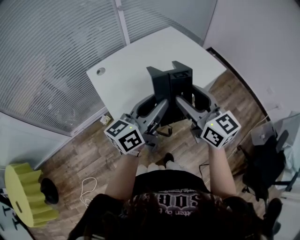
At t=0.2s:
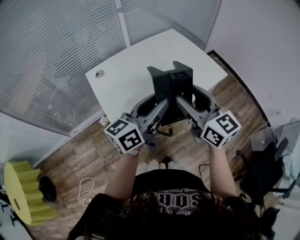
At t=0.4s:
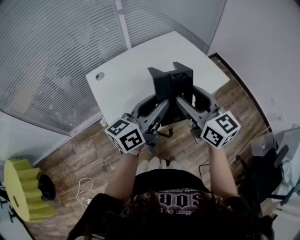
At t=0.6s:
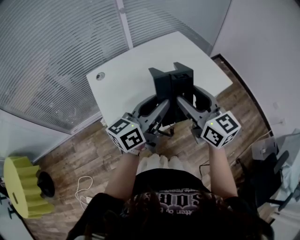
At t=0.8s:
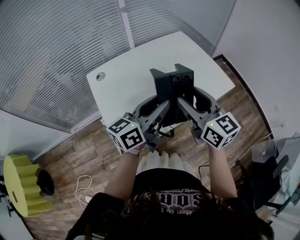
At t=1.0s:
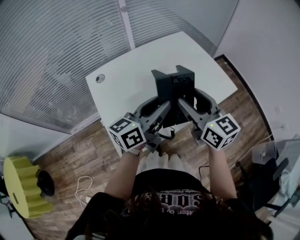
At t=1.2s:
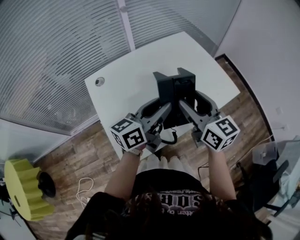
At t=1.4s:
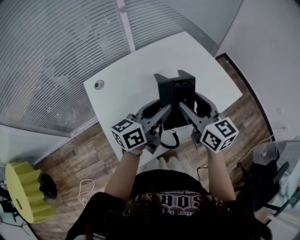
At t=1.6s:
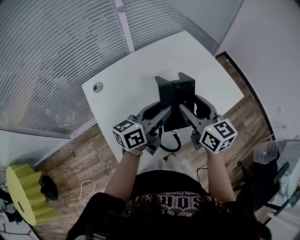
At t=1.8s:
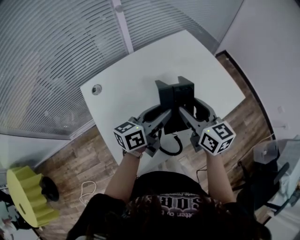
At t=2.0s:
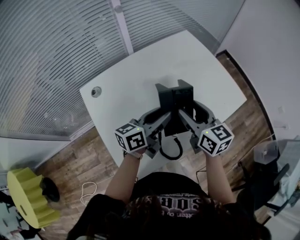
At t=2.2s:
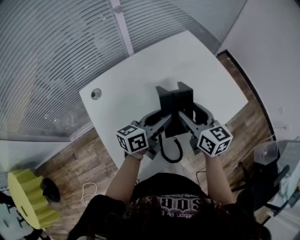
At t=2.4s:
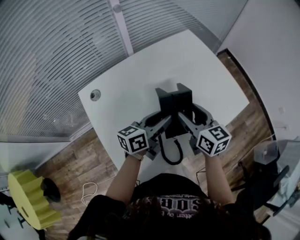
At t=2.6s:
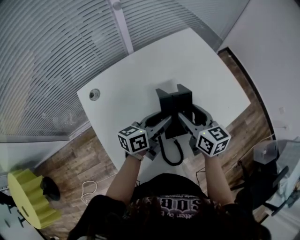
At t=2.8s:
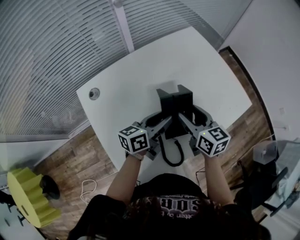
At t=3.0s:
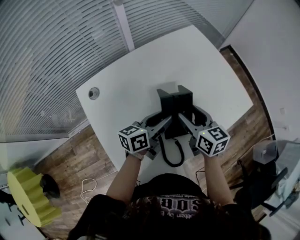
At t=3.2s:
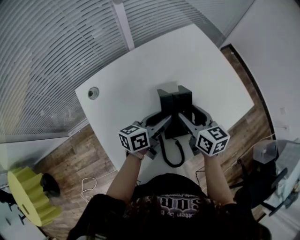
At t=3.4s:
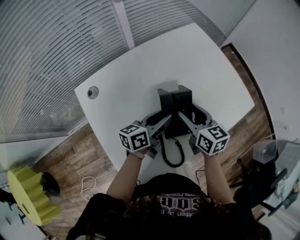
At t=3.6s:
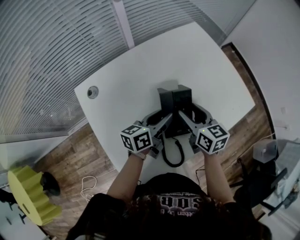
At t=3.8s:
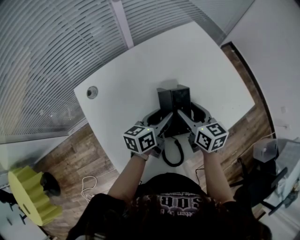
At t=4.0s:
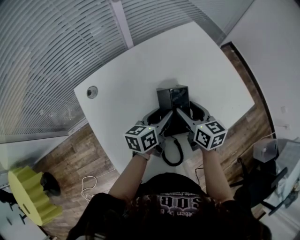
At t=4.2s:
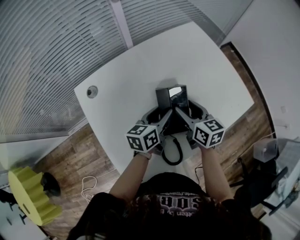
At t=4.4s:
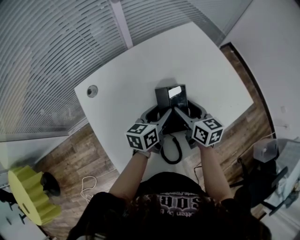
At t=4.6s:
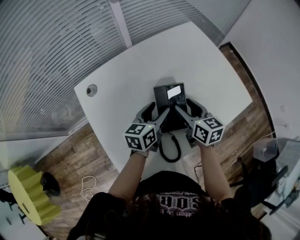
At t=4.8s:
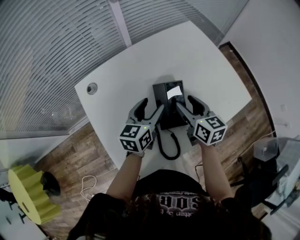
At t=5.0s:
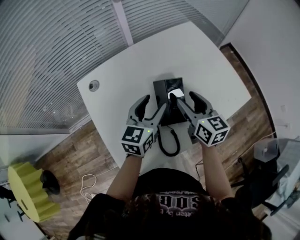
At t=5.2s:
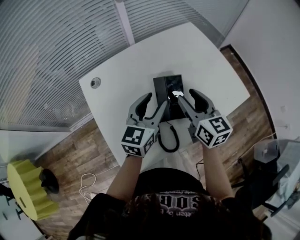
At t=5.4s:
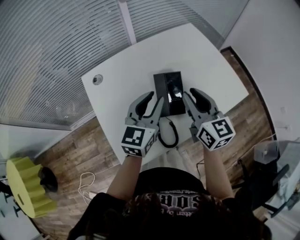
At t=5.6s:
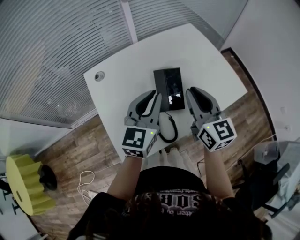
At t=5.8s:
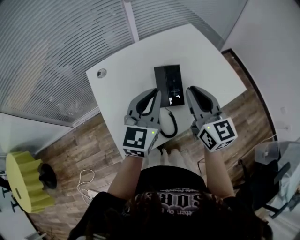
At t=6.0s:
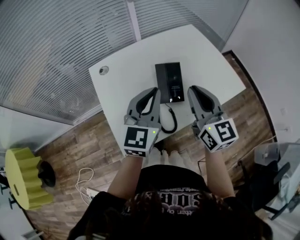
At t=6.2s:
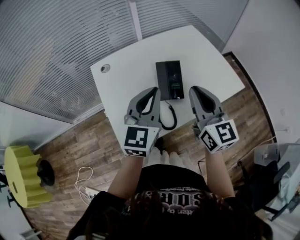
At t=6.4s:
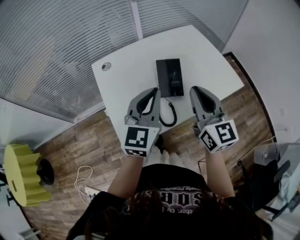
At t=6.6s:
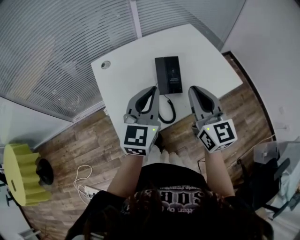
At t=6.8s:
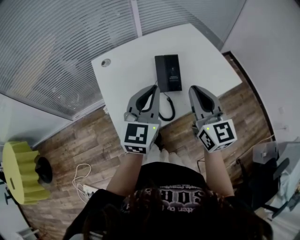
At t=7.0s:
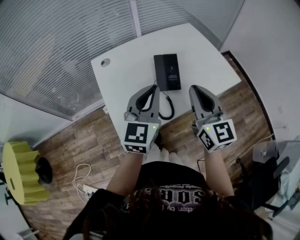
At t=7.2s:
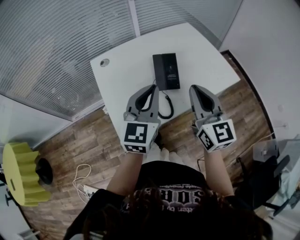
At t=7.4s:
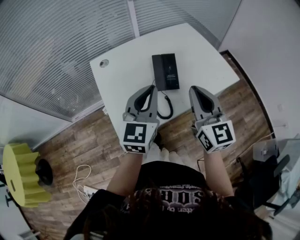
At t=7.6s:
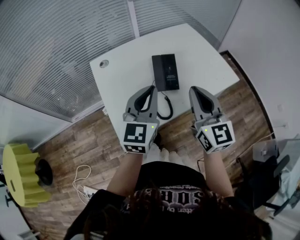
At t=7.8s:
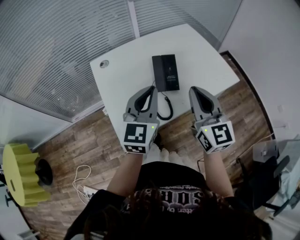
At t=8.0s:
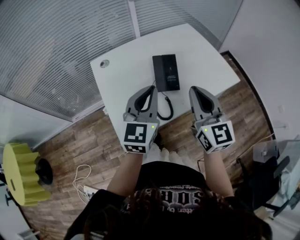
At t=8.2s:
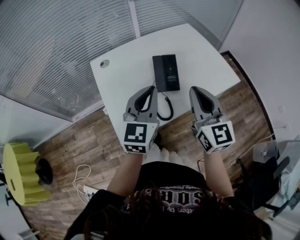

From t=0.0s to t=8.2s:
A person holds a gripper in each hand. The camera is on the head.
From t=0.0s to t=1.6s: The grippers both shift forward and downward by approximately 20 cm.
From t=1.6s to t=3.2s: Both grippers travel together downward and forward, approximately 15 cm.
From t=3.2s to t=5.0s: The left gripper shifts some 5 cm upward, changes its angle by some 40 degrees, and opens its fingers.
From t=5.0s to t=6.6s: Both grippers travel together backward and upward, approximately 20 cm. The right gripper turns by some 20 degrees, and closes up. The left gripper changes its angle by some 20 degrees, and closes.
From t=6.6s to t=8.2s: The grippers move only a little.

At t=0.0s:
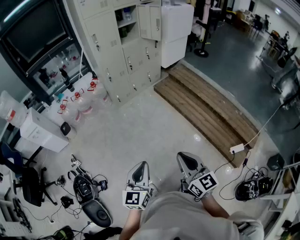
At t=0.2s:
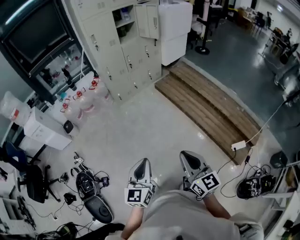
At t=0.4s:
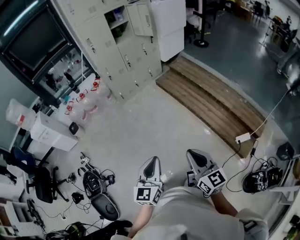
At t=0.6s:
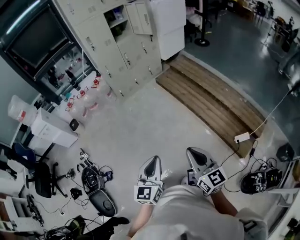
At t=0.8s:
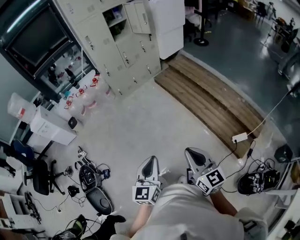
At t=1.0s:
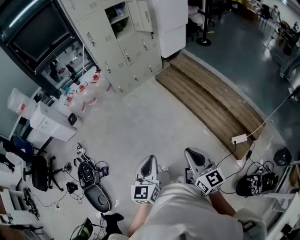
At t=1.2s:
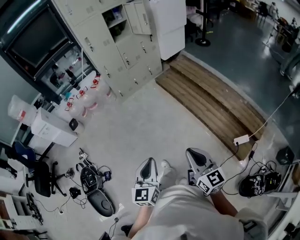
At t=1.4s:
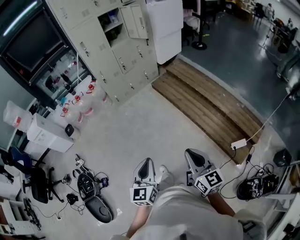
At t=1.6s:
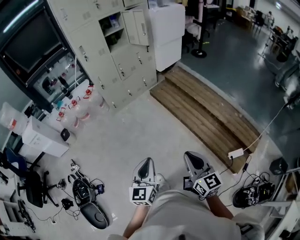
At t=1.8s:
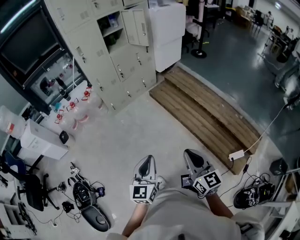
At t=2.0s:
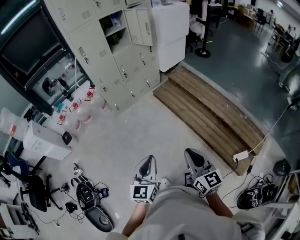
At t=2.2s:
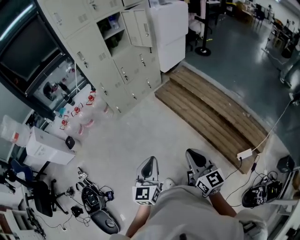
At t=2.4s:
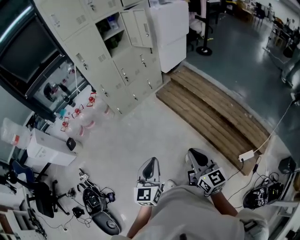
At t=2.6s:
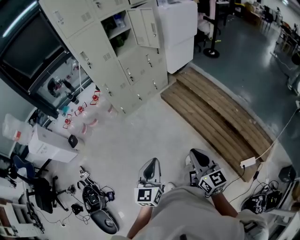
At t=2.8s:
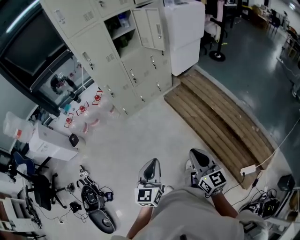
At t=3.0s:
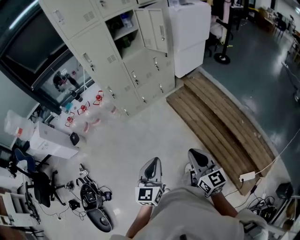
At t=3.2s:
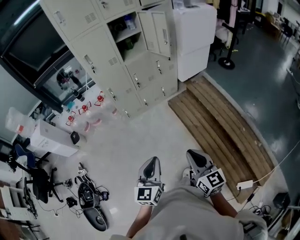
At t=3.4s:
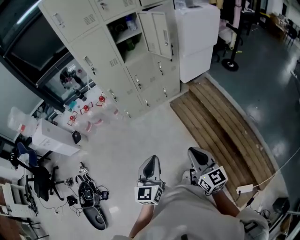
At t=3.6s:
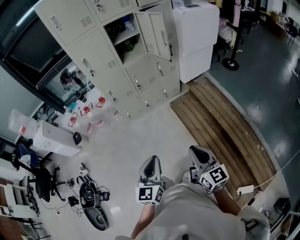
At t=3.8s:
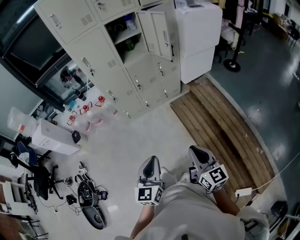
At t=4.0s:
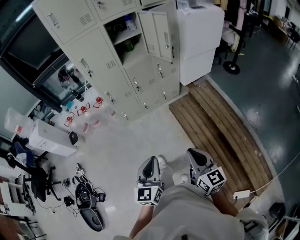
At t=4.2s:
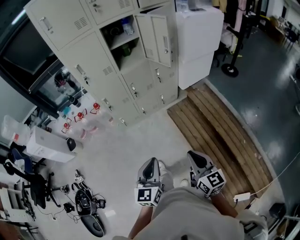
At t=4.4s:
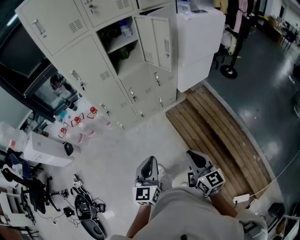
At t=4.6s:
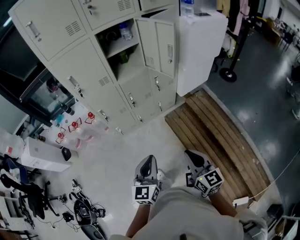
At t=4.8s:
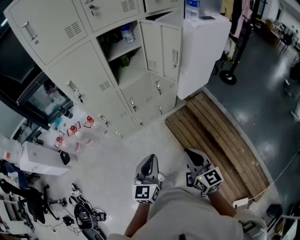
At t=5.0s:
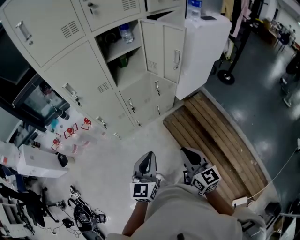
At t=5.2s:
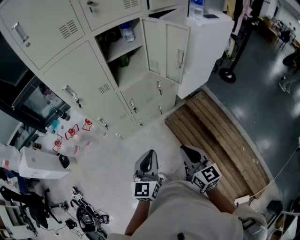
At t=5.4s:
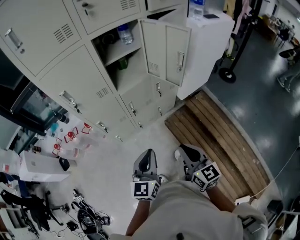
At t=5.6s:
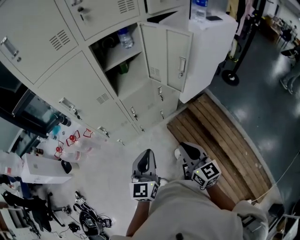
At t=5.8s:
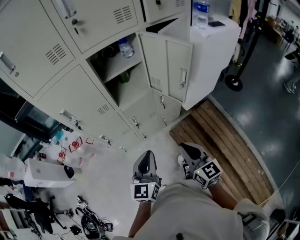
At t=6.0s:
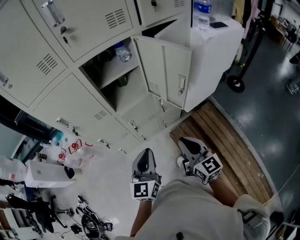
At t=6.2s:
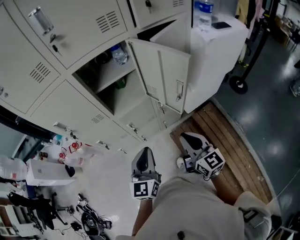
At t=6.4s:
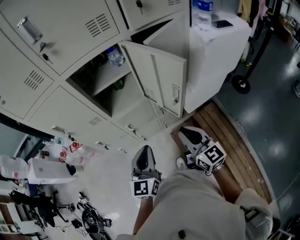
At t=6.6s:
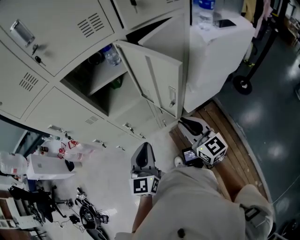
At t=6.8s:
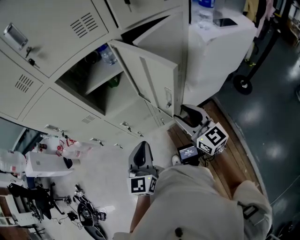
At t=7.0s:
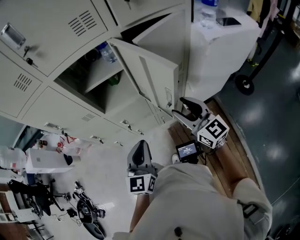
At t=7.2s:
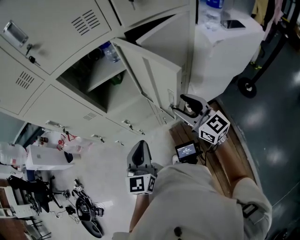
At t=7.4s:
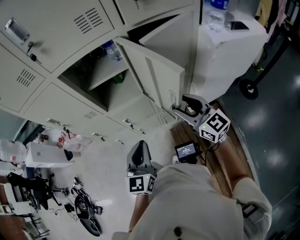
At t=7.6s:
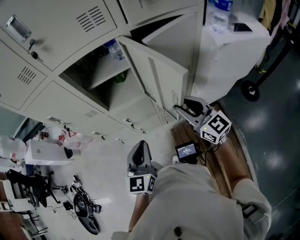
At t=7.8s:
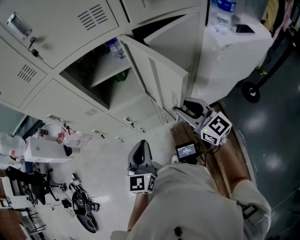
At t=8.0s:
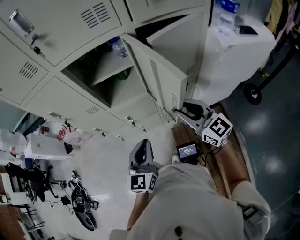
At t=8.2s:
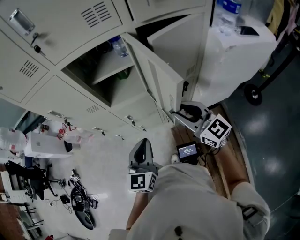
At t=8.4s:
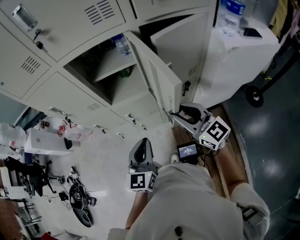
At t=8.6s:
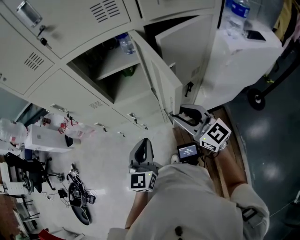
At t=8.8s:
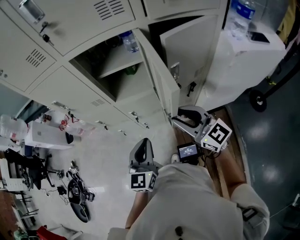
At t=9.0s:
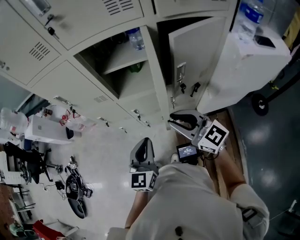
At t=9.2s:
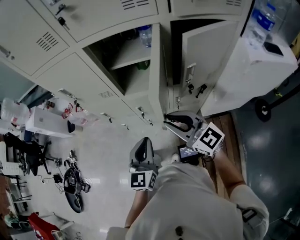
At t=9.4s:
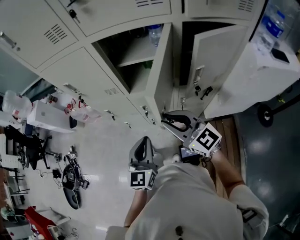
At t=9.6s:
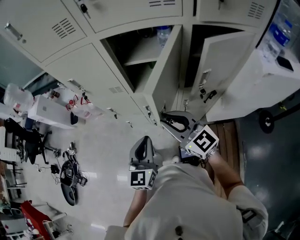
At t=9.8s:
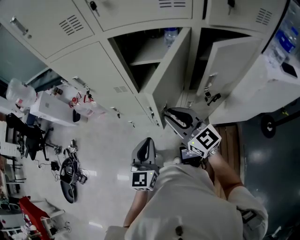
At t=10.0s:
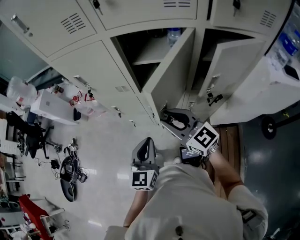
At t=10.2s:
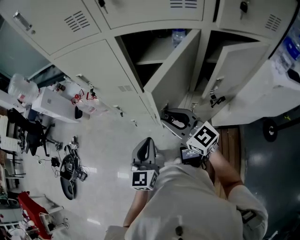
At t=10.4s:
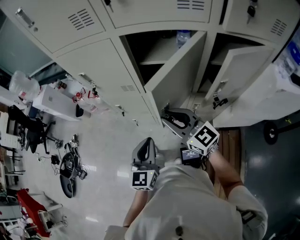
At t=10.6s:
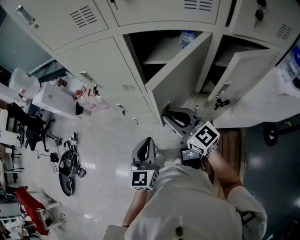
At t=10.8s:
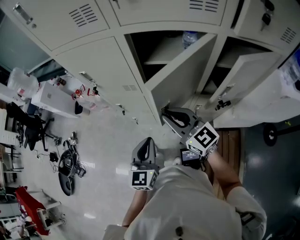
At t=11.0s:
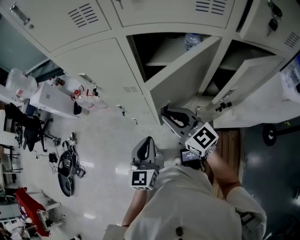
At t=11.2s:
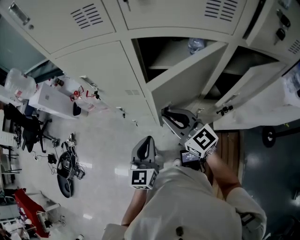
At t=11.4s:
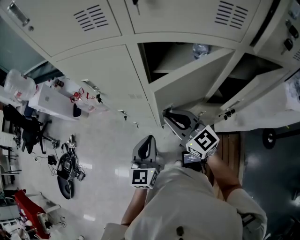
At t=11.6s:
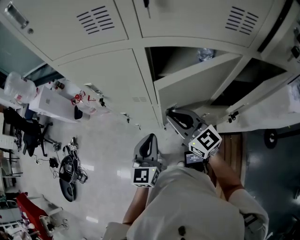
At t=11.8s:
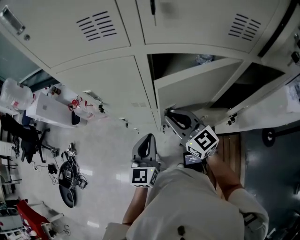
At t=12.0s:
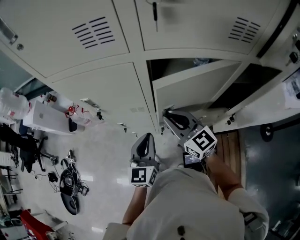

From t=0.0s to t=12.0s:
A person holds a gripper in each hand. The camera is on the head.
From t=0.0s to t=1.6s: Both grippers move to the right, about 20 cm.
From t=1.6s to t=3.0s: Both grippers travel together forward, roughly 25 cm.
From t=3.0s to t=4.4s: The grippers both shift forward by roughly 25 cm.
From t=4.4s to t=6.0s: Both grippers travel together forward, roughly 35 cm.
From t=6.0s to t=7.6s: The left gripper goes roughly 10 cm to the right and forward; the right gripper shifts some 25 cm forward and to the right, rotates approximately 30 degrees, and opens up.
From t=7.6s to t=9.0s: The right gripper travels to the left by some 10 cm, and changes its angle by approximately 20 degrees.
From t=9.0s to t=10.4s: The right gripper goes roughly 15 cm to the left and forward. The left gripper goes approximately 10 cm to the left.
From t=10.4s to t=12.0s: The two grippers go about 15 cm forward.

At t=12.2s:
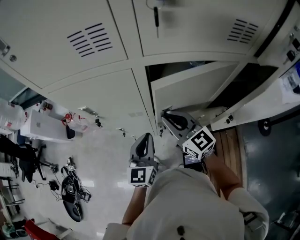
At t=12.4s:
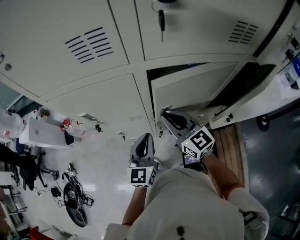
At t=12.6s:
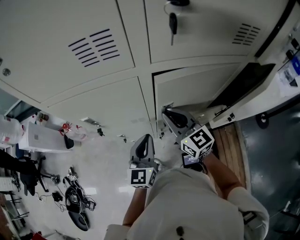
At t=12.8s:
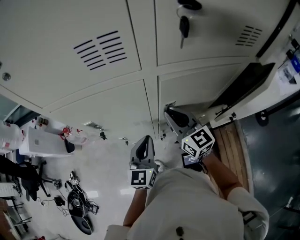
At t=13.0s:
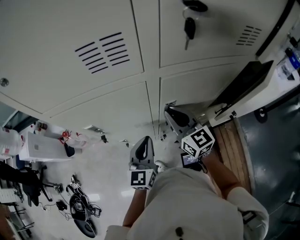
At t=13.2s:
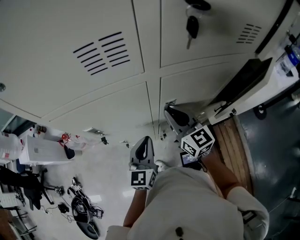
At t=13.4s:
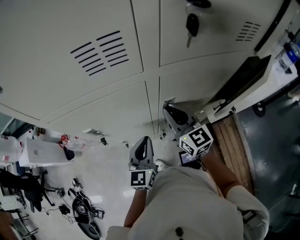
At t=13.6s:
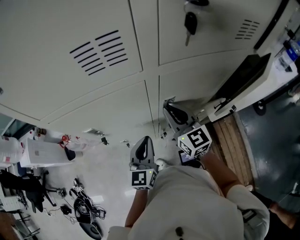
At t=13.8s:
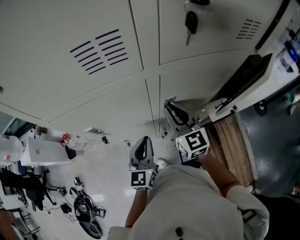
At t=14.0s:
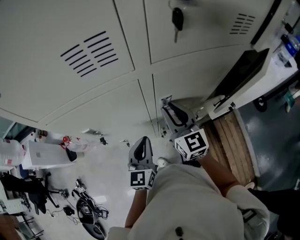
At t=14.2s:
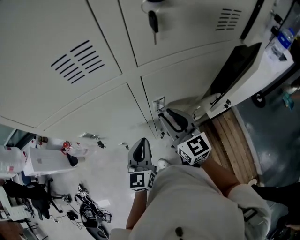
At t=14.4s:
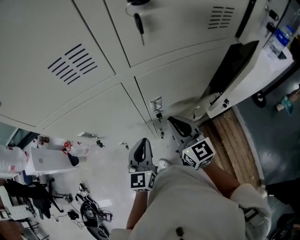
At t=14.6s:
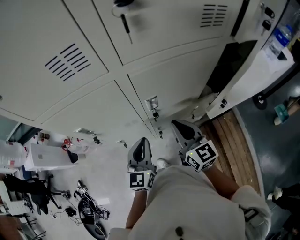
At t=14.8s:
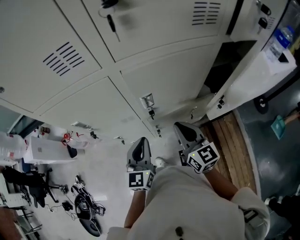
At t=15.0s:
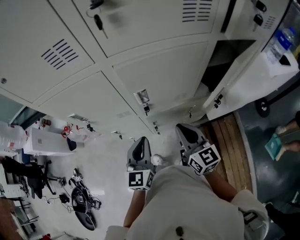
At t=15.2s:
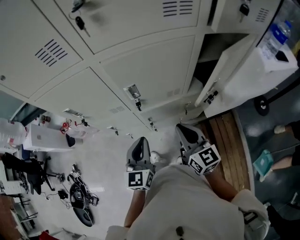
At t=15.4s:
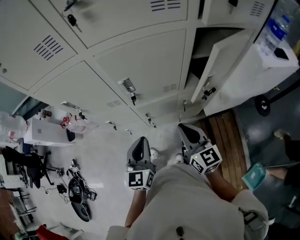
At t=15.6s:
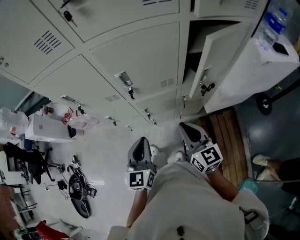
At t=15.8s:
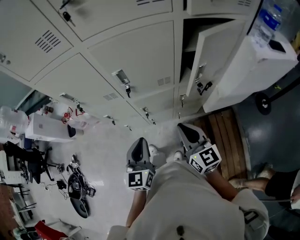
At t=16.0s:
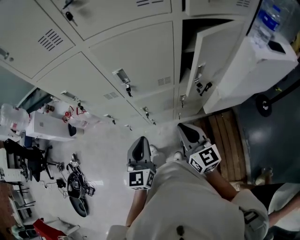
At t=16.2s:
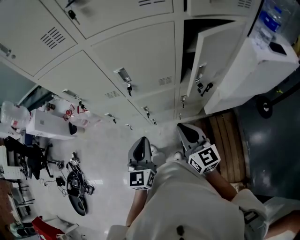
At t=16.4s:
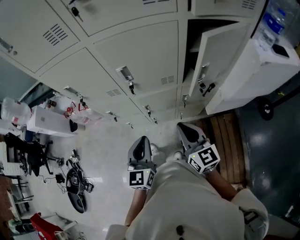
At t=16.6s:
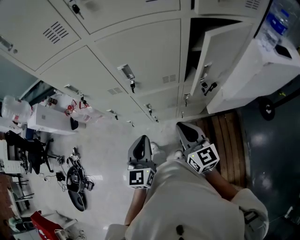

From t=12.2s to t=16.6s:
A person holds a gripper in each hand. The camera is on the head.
From t=12.2s to t=13.6s: The right gripper goes approximately 5 cm forward, and swivels roughly 30 degrees, while the left gripper ends up approximately 5 cm from where it was.
From t=13.6s to t=15.2s: The left gripper shifts some 15 cm to the right and backward. Meanwhile the right gripper shifts some 20 cm backward and to the right.
From t=15.2s to t=16.6s: The grippers both shift backward by some 10 cm.
